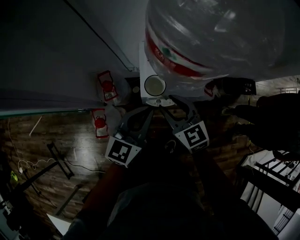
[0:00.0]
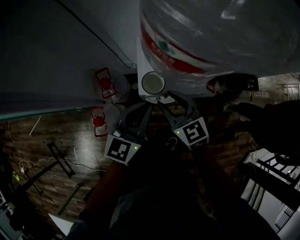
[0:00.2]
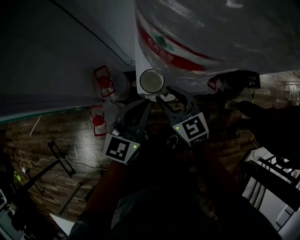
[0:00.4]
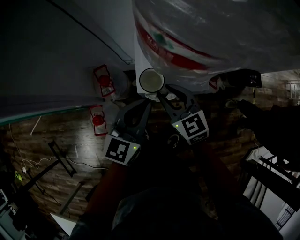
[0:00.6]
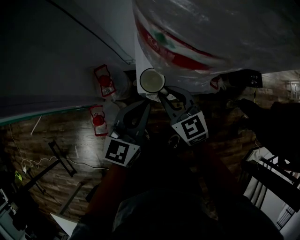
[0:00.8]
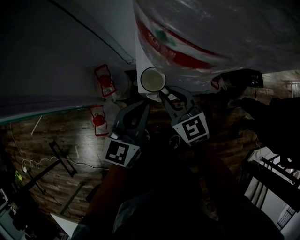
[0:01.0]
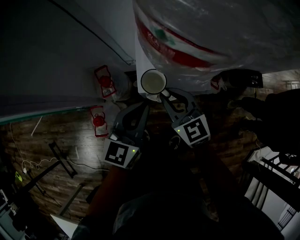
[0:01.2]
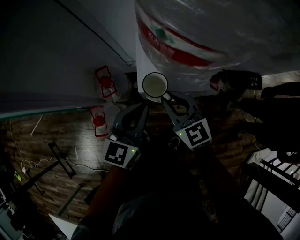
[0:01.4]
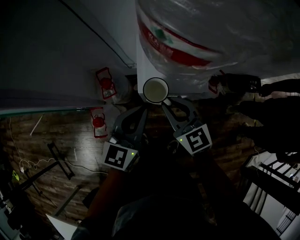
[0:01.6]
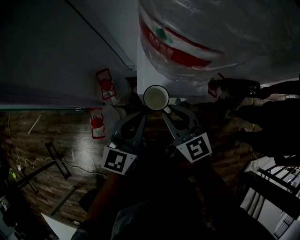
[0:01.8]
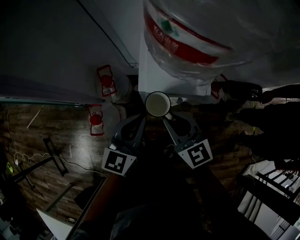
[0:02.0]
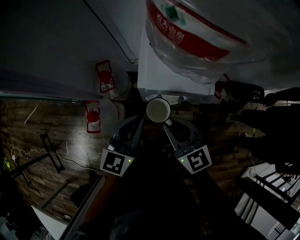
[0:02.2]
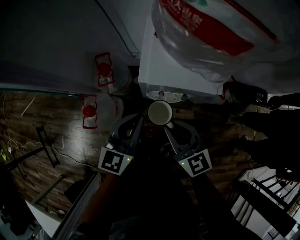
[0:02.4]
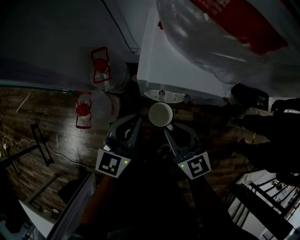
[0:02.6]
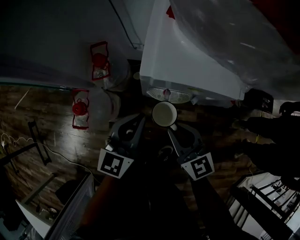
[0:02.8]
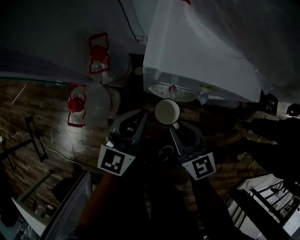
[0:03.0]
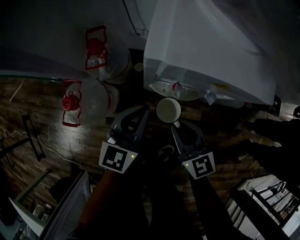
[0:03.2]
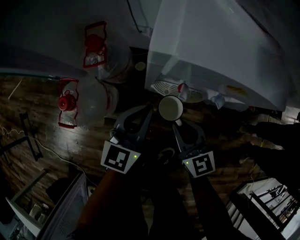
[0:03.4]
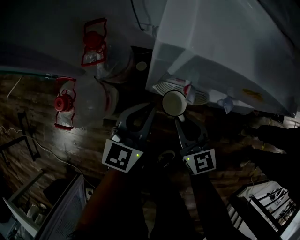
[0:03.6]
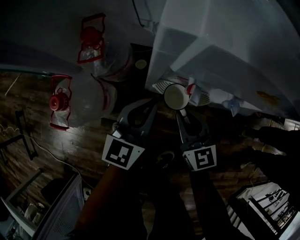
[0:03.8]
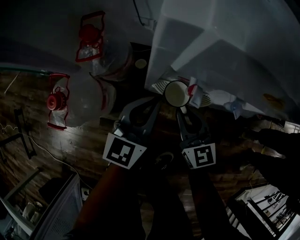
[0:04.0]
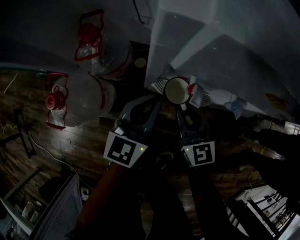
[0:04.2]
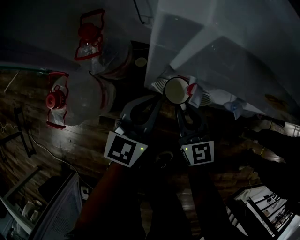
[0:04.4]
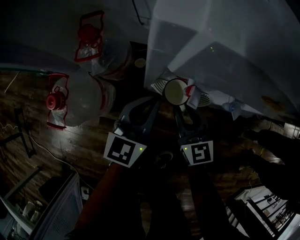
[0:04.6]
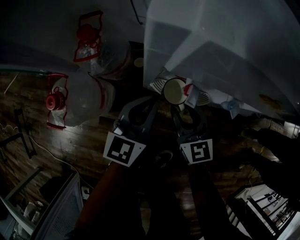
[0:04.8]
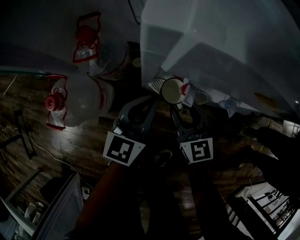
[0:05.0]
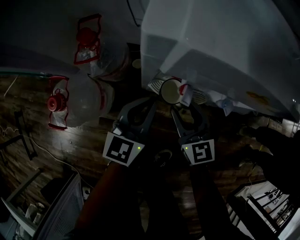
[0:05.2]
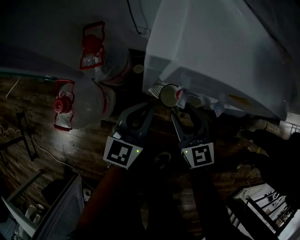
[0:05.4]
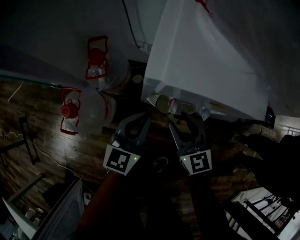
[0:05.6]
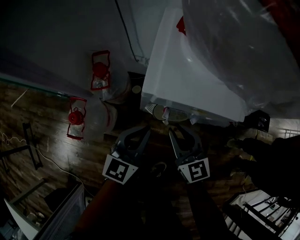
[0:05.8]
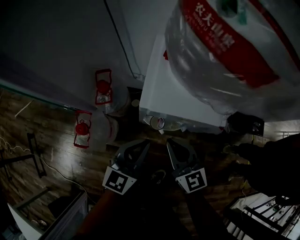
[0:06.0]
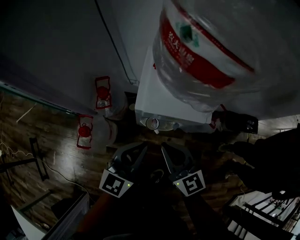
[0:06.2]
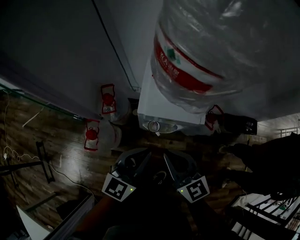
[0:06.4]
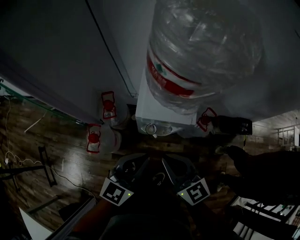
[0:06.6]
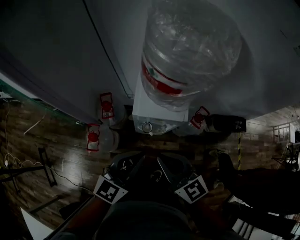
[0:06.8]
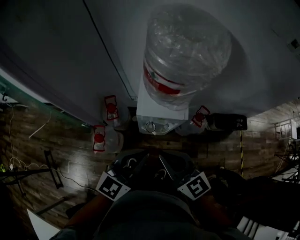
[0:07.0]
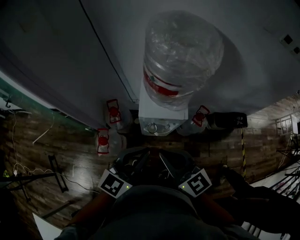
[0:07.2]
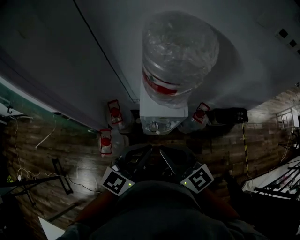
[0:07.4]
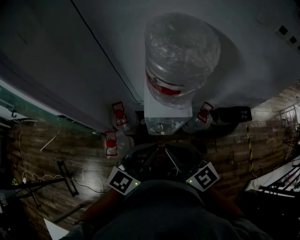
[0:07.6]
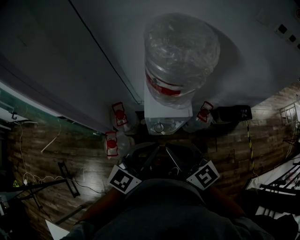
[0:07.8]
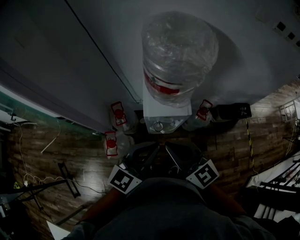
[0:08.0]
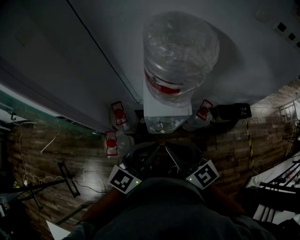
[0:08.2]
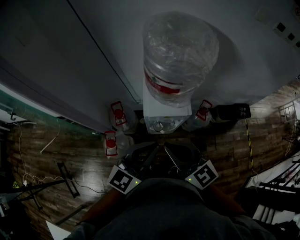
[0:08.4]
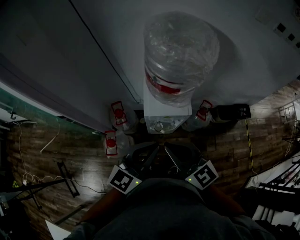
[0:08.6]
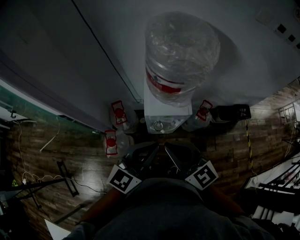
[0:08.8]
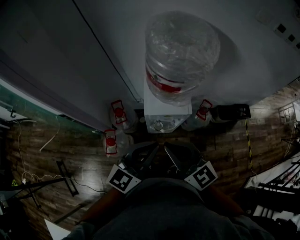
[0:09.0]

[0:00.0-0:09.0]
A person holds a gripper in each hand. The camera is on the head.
0:00.0 to 0:01.6: The right gripper closes.
0:01.6 to 0:03.0: The two grippers go about 25 cm downward.
0:03.0 to 0:04.4: The right gripper goes about 15 cm downward and forward. The left gripper shifts about 15 cm downward.
0:04.4 to 0:06.0: The two grippers go about 25 cm upward. The right gripper opens and closes again.
0:06.0 to 0:07.6: Both grippers travel together upward, about 35 cm.
0:07.6 to 0:09.0: Both grippers stay put.

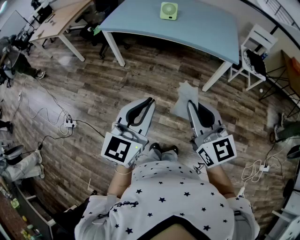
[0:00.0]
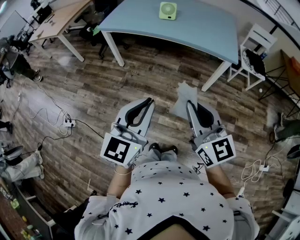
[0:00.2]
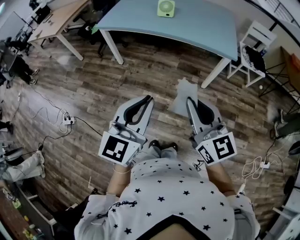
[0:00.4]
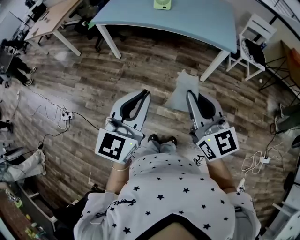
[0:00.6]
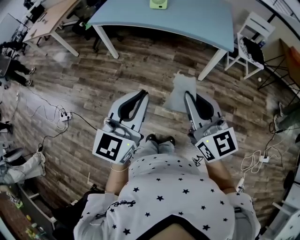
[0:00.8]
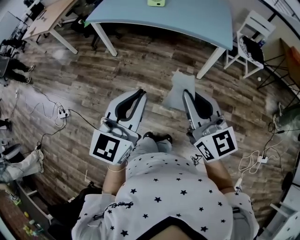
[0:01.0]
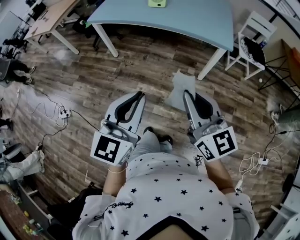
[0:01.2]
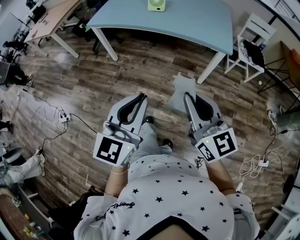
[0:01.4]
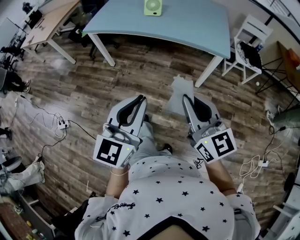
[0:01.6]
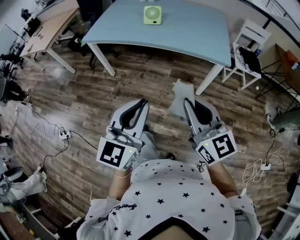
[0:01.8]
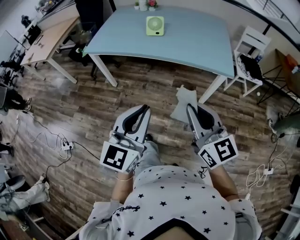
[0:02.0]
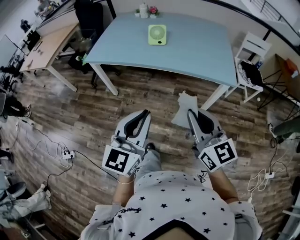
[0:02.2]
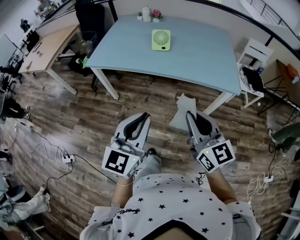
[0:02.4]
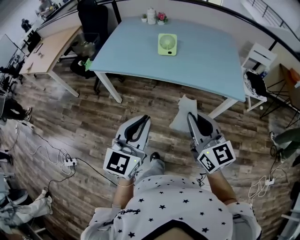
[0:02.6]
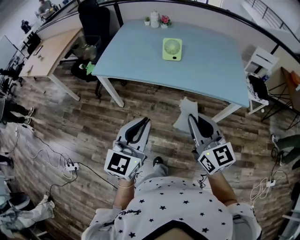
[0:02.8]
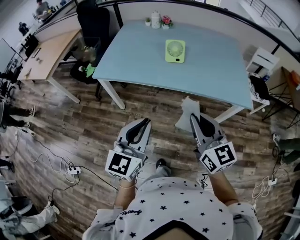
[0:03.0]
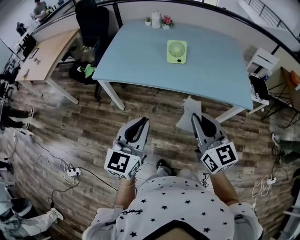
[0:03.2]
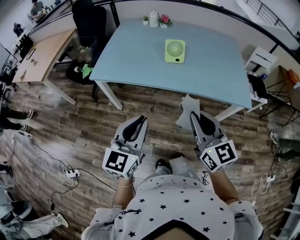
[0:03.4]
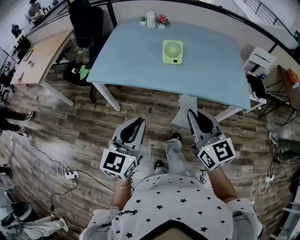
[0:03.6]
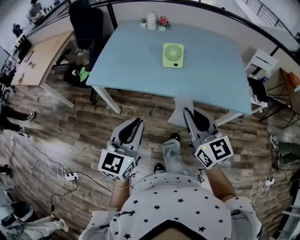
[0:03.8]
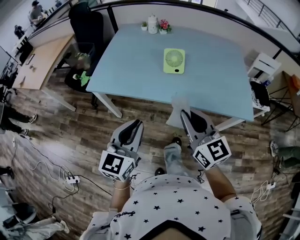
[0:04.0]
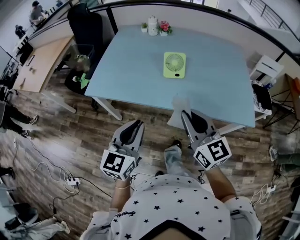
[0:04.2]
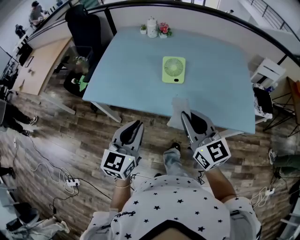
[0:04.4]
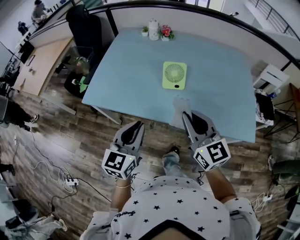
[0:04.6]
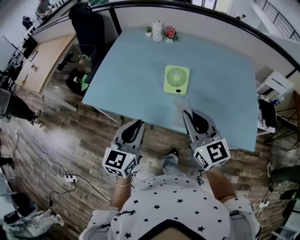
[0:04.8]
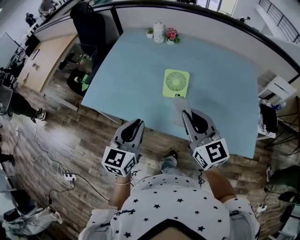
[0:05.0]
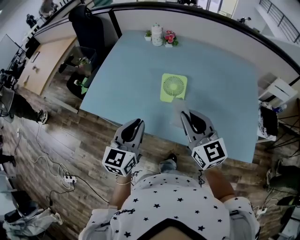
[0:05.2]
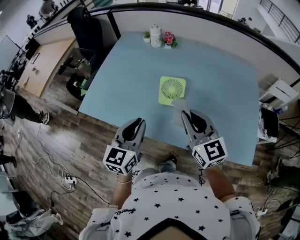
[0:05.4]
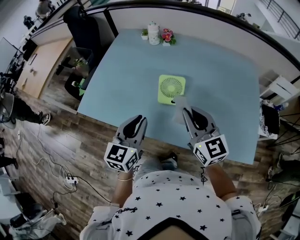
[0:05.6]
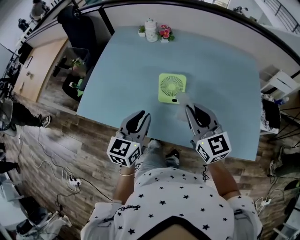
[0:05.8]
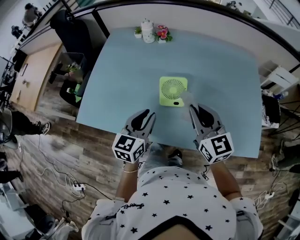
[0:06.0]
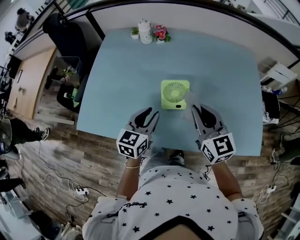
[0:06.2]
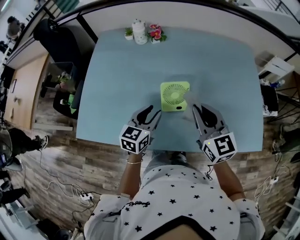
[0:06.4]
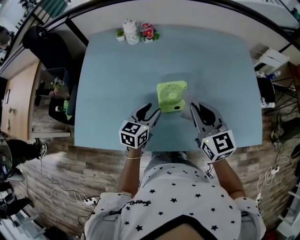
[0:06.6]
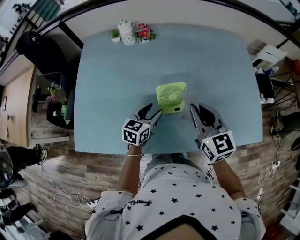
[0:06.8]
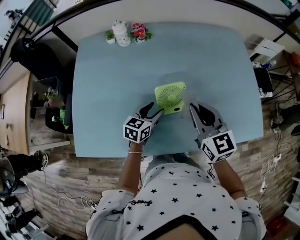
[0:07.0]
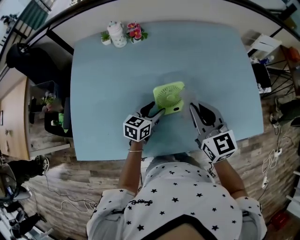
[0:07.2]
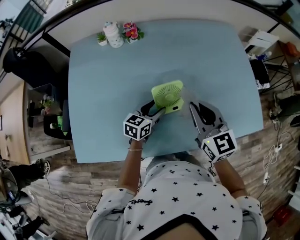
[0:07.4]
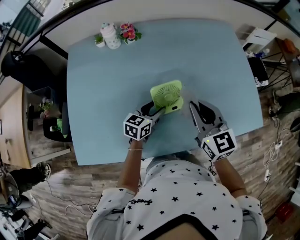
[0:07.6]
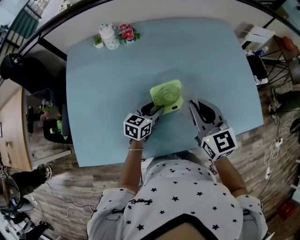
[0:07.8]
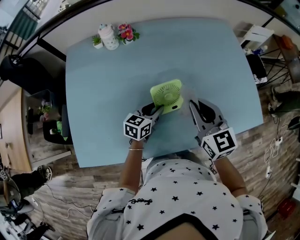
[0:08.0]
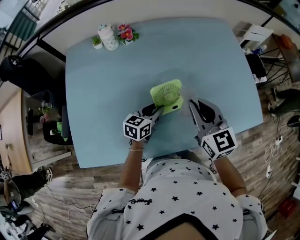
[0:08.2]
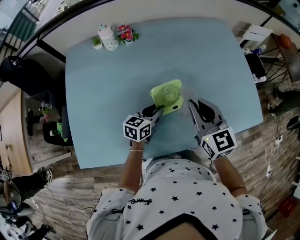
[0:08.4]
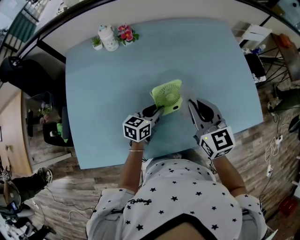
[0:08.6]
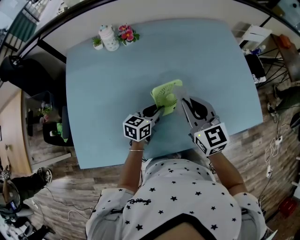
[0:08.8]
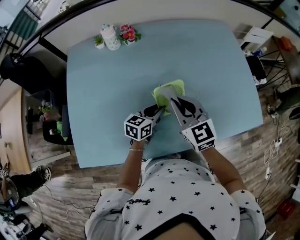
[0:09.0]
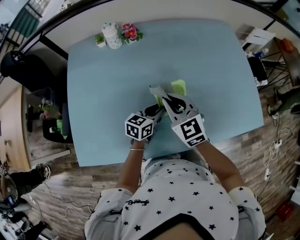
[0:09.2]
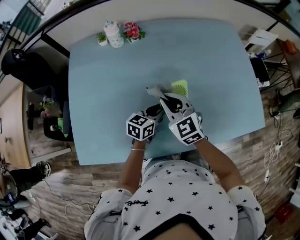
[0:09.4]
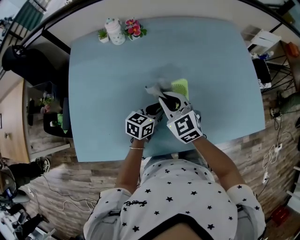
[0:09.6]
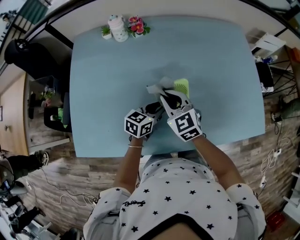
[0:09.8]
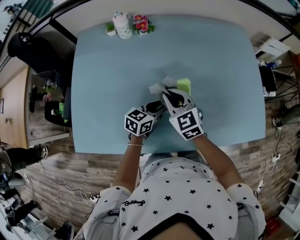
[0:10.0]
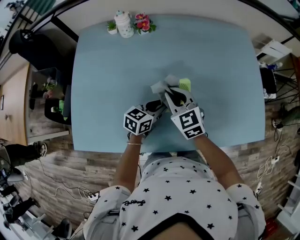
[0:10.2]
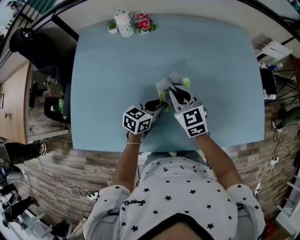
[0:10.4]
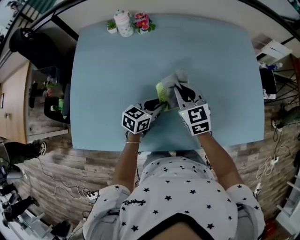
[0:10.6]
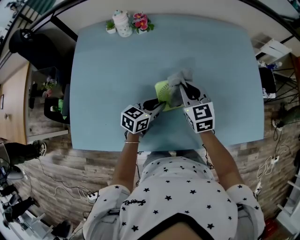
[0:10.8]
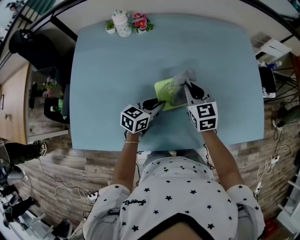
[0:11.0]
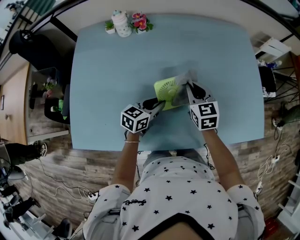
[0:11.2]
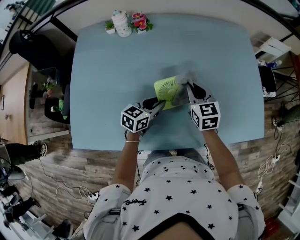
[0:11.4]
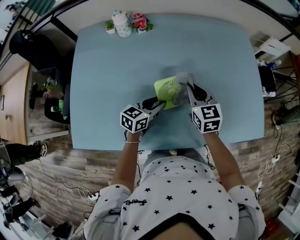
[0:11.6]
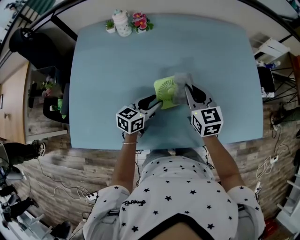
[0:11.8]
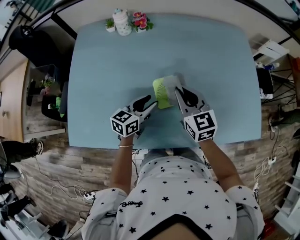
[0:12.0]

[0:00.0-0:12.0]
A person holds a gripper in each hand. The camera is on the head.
0:00.0 to 0:01.6: Both grippers travel together to the right, some 5 cm.
0:01.6 to 0:03.0: Both grippers travel together forward and to the left, roughly 30 cm.
0:03.0 to 0:04.4: Both grippers move forward, about 20 cm.
0:04.4 to 0:06.0: The grippers both shift forward by roughly 20 cm.
0:06.0 to 0:07.6: The left gripper travels downward by roughly 15 cm, changes its angle by some 40 degrees, and opens its fingers. Meanwhile the right gripper moves roughly 5 cm, and swivels approximately 20 degrees.
0:07.6 to 0:09.0: The right gripper is displaced to the left by roughly 5 cm. The left gripper closes.
0:09.0 to 0:10.4: The right gripper goes about 5 cm downward.

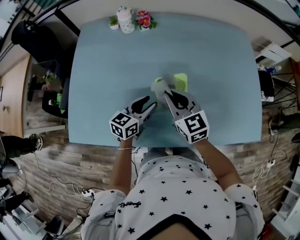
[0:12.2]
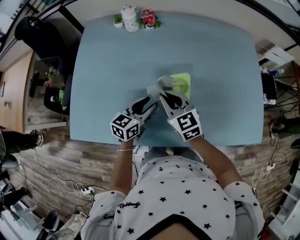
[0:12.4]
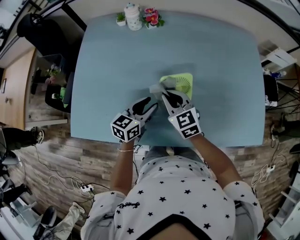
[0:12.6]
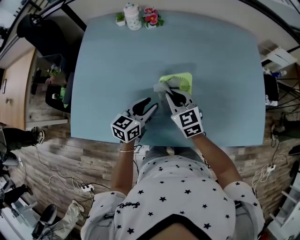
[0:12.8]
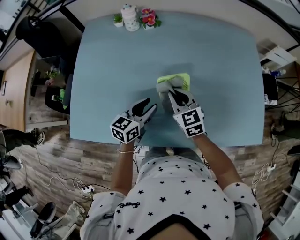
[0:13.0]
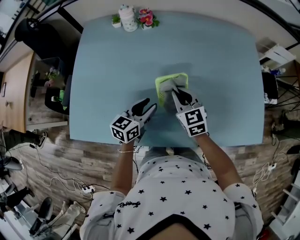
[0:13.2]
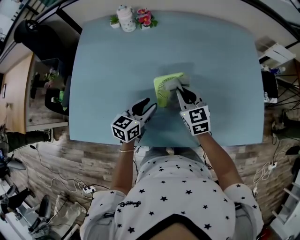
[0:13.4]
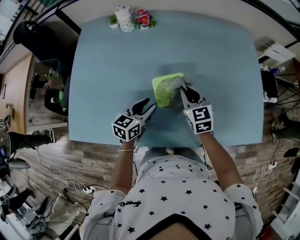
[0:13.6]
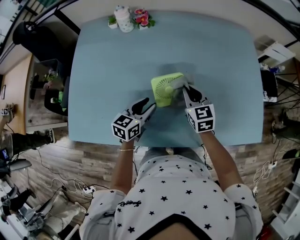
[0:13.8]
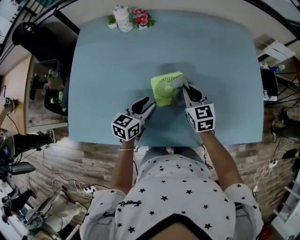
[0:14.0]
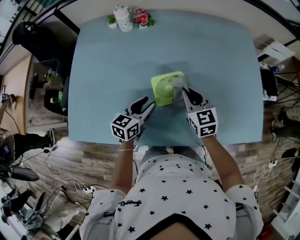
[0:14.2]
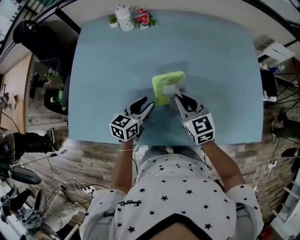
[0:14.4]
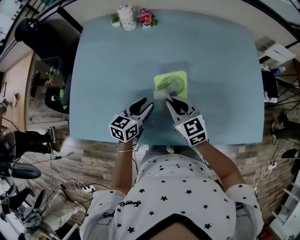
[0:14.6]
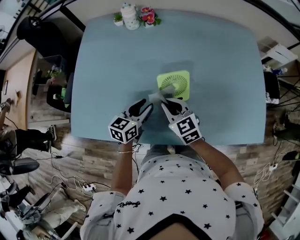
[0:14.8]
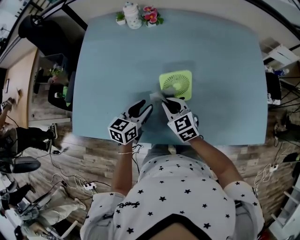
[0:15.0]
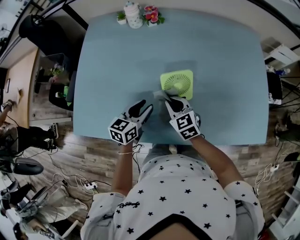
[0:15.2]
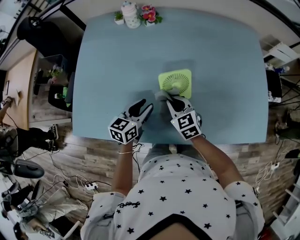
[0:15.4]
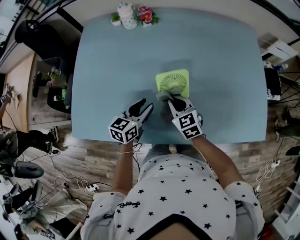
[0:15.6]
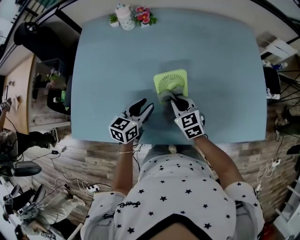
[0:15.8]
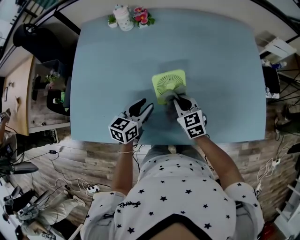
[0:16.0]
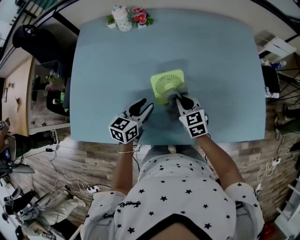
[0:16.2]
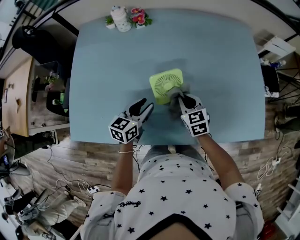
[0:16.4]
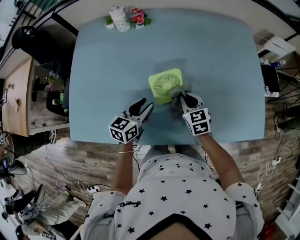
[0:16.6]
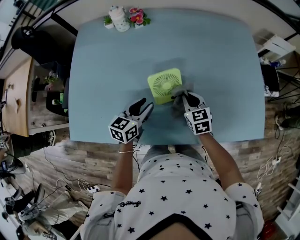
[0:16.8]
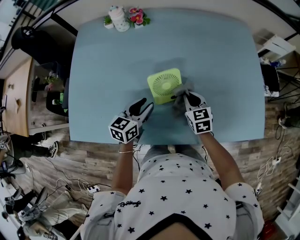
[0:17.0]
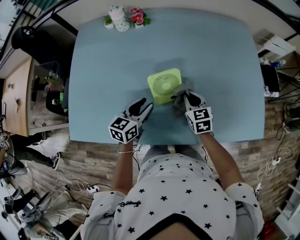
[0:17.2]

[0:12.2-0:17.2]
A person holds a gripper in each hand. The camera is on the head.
0:12.2 to 0:13.8: The right gripper shifts approximately 10 cm to the right and downward.
0:13.8 to 0:15.6: The right gripper heads to the left and backward, covering some 10 cm.
0:15.6 to 0:17.2: The right gripper shifts roughly 10 cm to the right.
